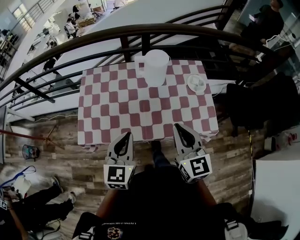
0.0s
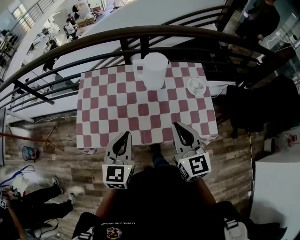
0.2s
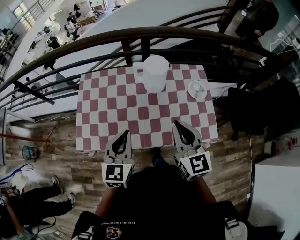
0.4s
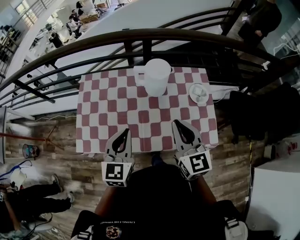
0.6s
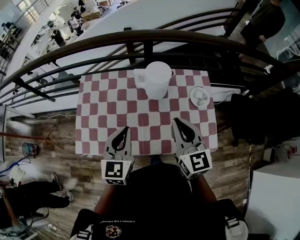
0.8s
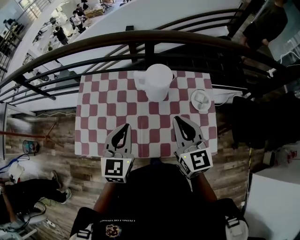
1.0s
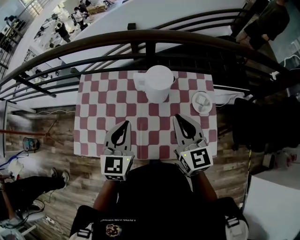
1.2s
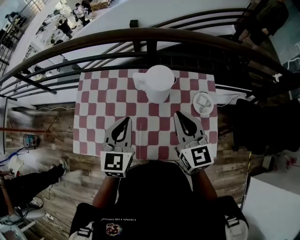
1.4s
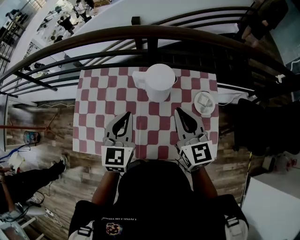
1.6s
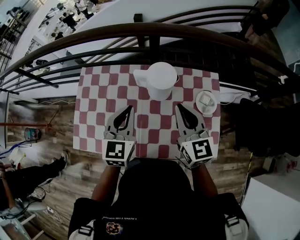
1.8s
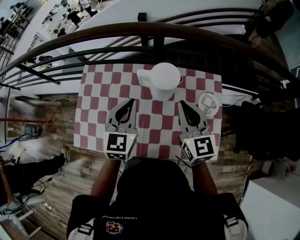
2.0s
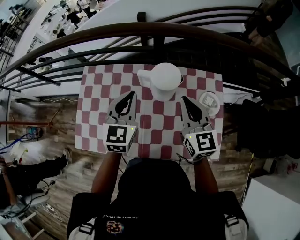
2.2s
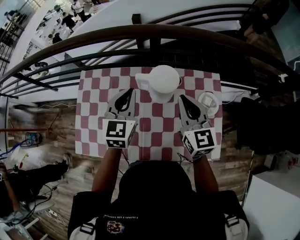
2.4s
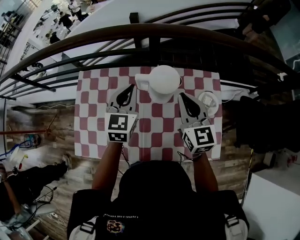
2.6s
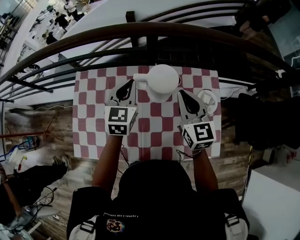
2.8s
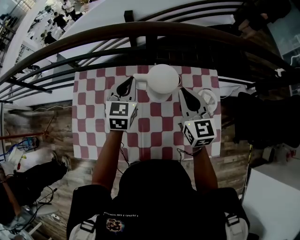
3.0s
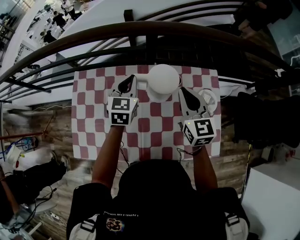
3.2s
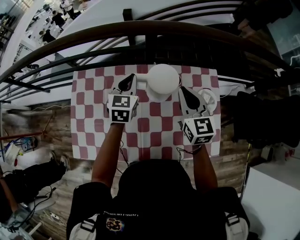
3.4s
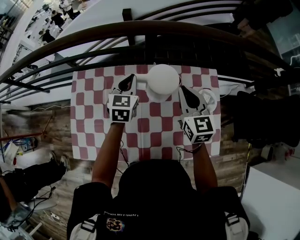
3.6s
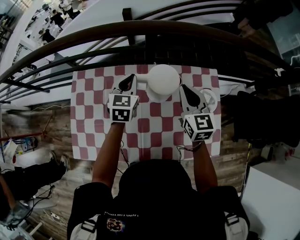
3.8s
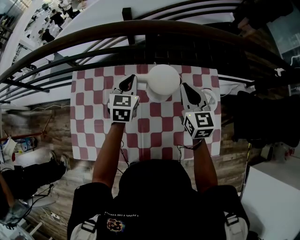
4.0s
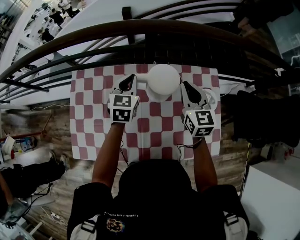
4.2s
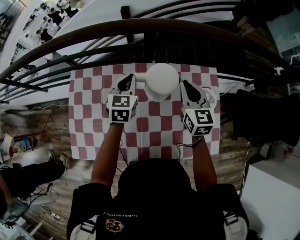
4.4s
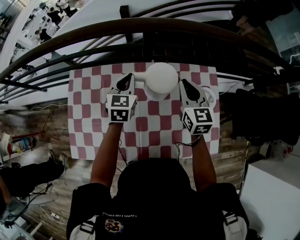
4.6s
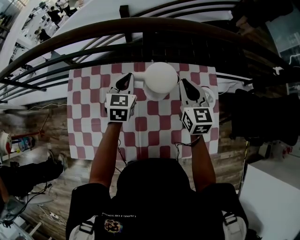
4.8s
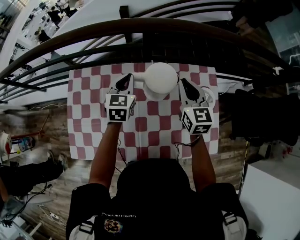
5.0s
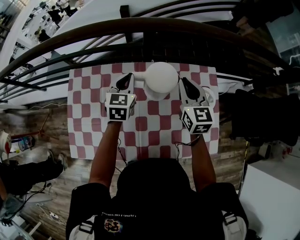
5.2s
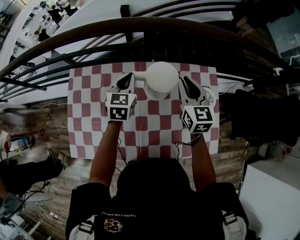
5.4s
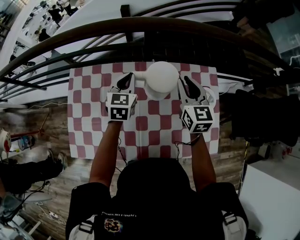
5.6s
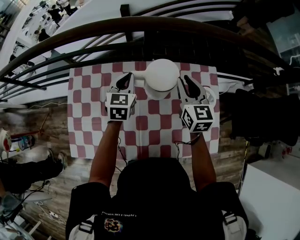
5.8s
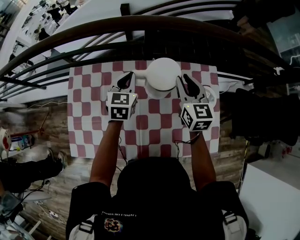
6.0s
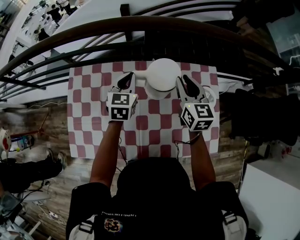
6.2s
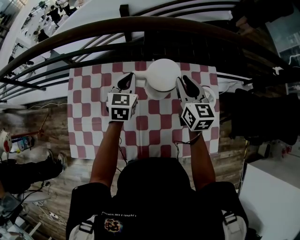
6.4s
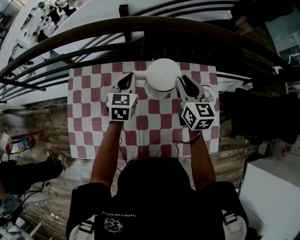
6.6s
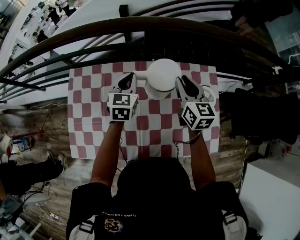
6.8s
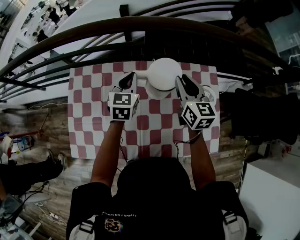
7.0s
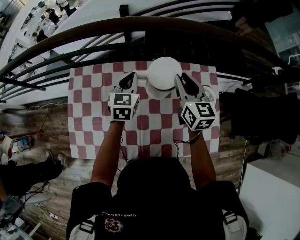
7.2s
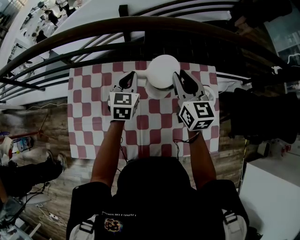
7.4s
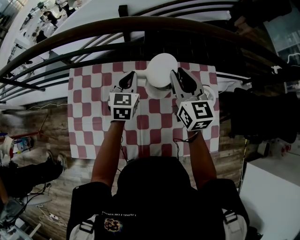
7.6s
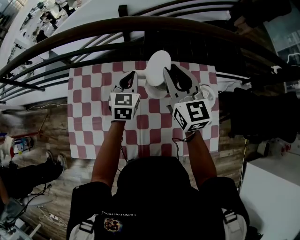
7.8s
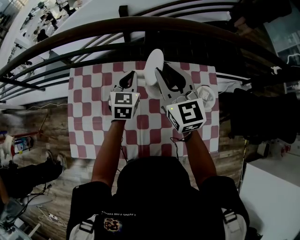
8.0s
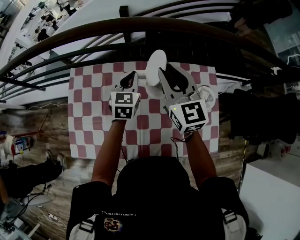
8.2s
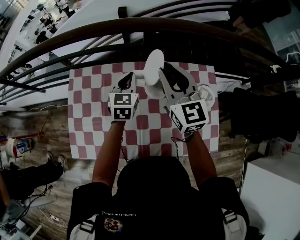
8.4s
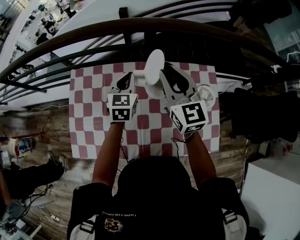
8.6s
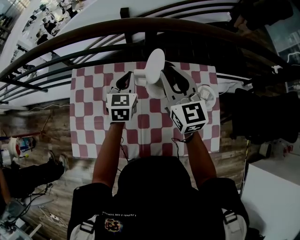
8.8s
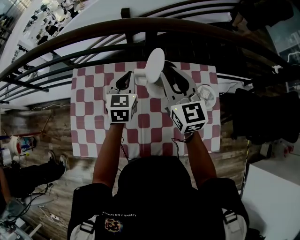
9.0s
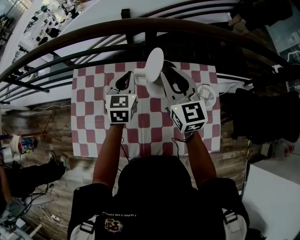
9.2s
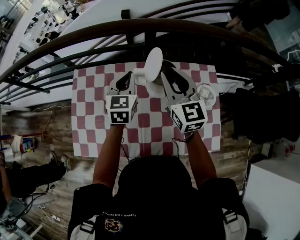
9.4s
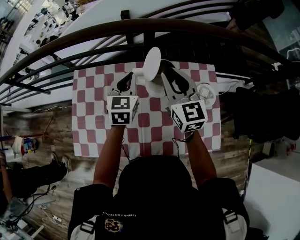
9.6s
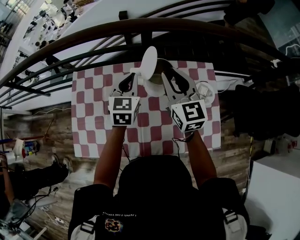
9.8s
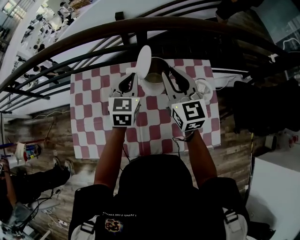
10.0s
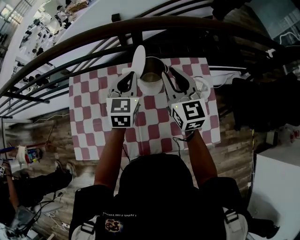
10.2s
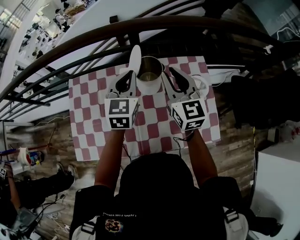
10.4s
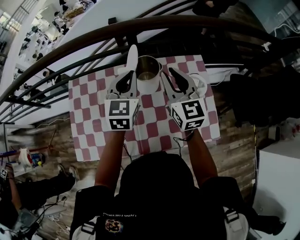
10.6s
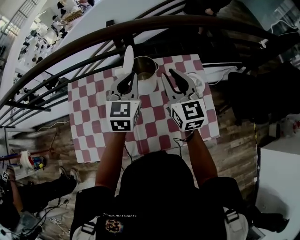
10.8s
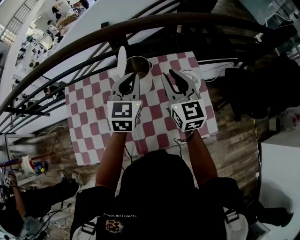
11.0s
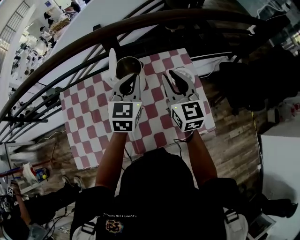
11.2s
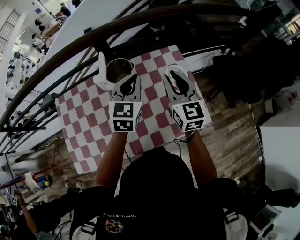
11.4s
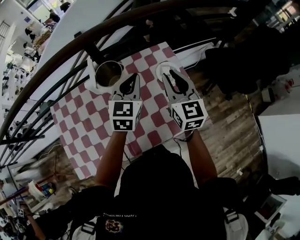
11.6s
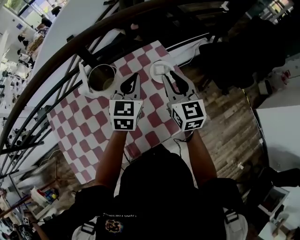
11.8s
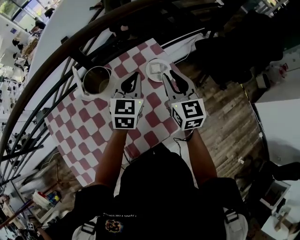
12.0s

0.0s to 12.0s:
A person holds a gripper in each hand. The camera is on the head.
0.0s to 1.6s: Both grippers move forward, roughly 25 cm.
1.6s to 3.0s: The right gripper travels forward by some 10 cm; the left gripper moves forward, roughly 15 cm.
3.0s to 4.4s: The right gripper moves some 5 cm.
4.4s to 6.0s: The grippers move only a little.
6.0s to 7.6s: The right gripper is displaced upward by roughly 5 cm.
9.0s to 10.4s: The right gripper moves to the right, some 5 cm; the left gripper travels to the right and upward by some 10 cm.
10.4s to 12.0s: The right gripper ends up roughly 20 cm from where it was, and rotates approximately 30 degrees. Meanwhile the left gripper moves approximately 25 cm, and swivels some 30 degrees.

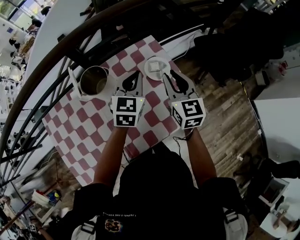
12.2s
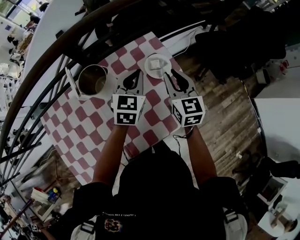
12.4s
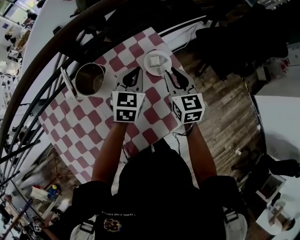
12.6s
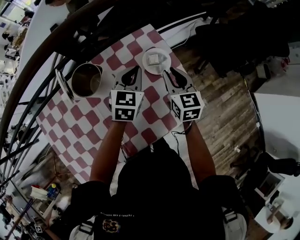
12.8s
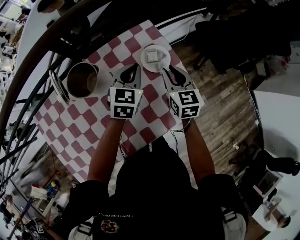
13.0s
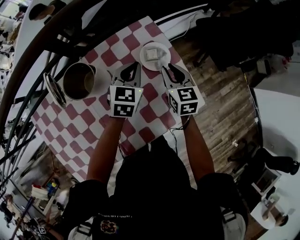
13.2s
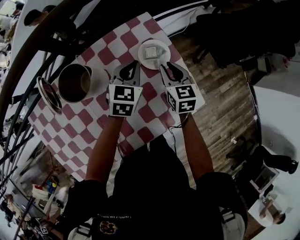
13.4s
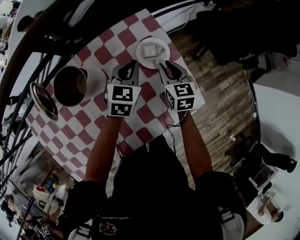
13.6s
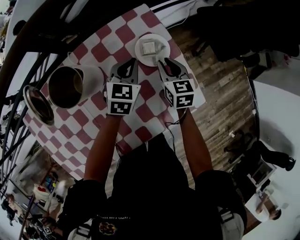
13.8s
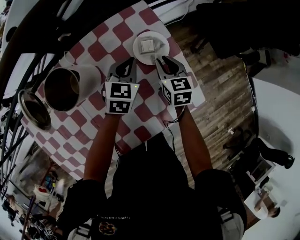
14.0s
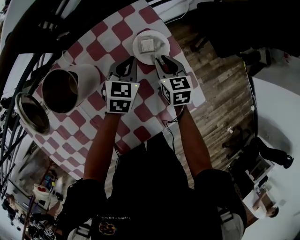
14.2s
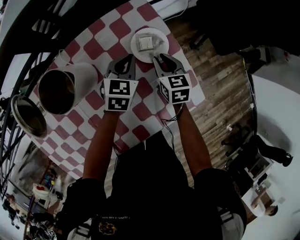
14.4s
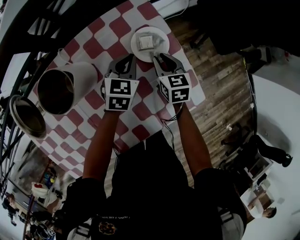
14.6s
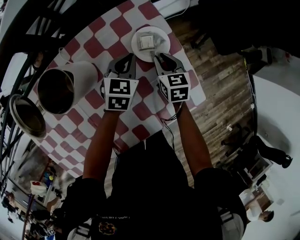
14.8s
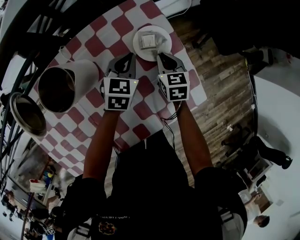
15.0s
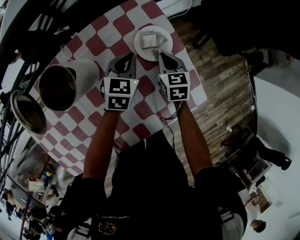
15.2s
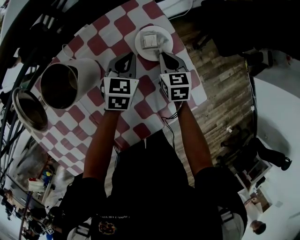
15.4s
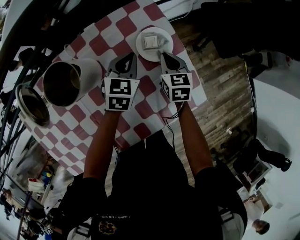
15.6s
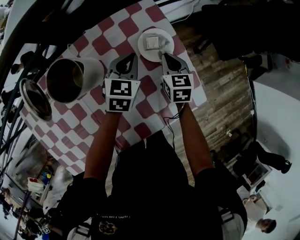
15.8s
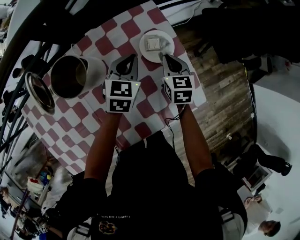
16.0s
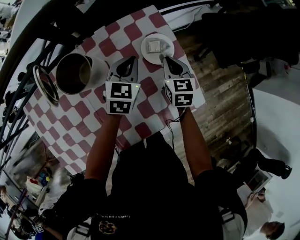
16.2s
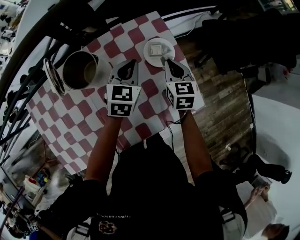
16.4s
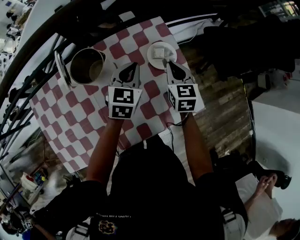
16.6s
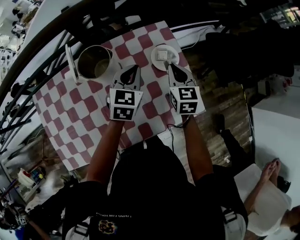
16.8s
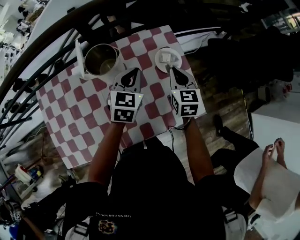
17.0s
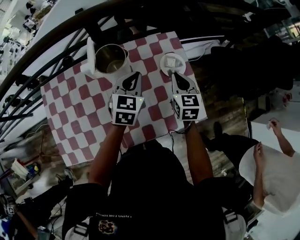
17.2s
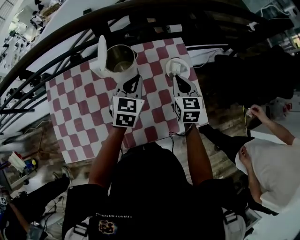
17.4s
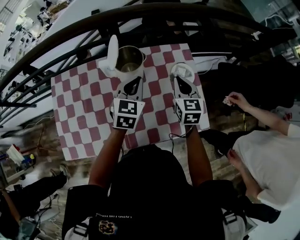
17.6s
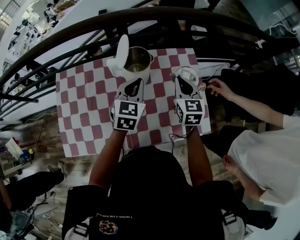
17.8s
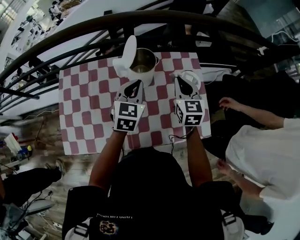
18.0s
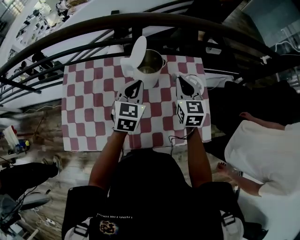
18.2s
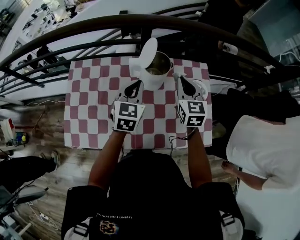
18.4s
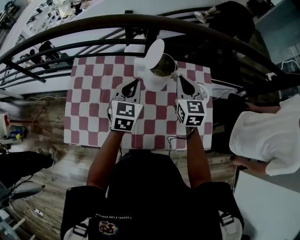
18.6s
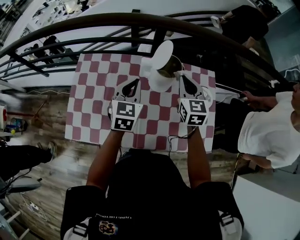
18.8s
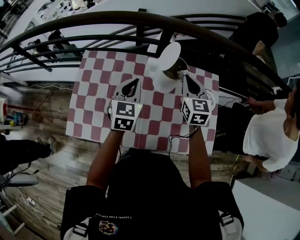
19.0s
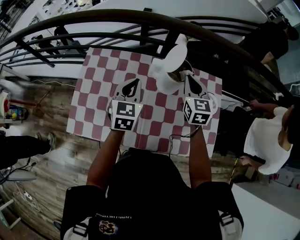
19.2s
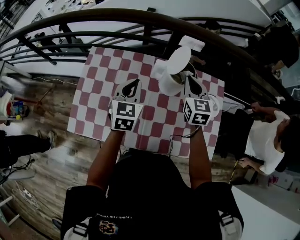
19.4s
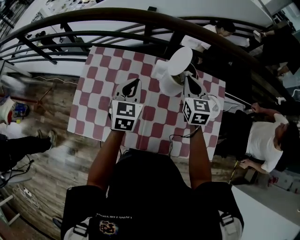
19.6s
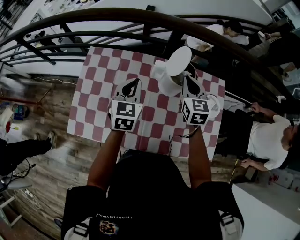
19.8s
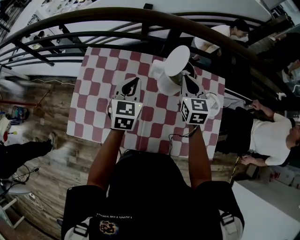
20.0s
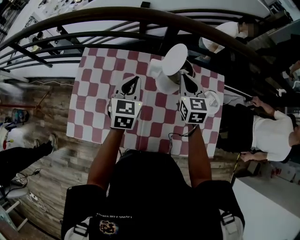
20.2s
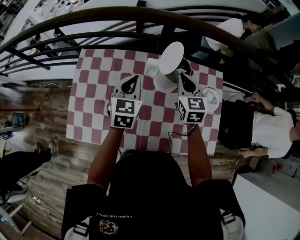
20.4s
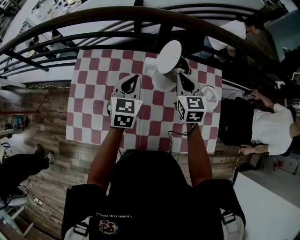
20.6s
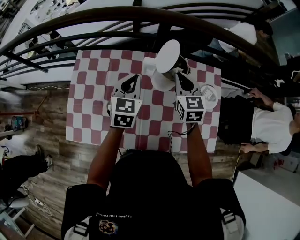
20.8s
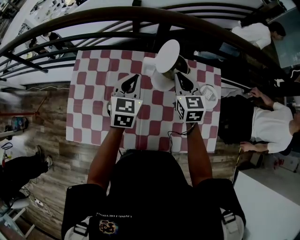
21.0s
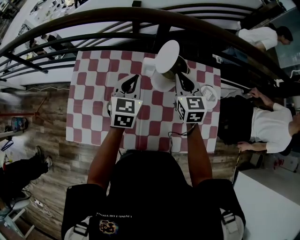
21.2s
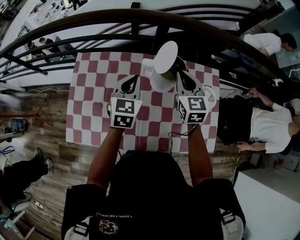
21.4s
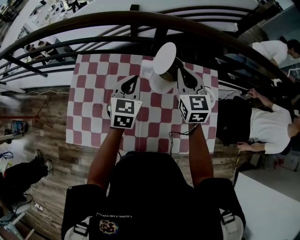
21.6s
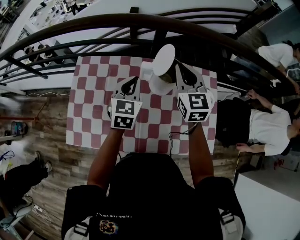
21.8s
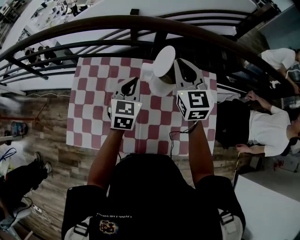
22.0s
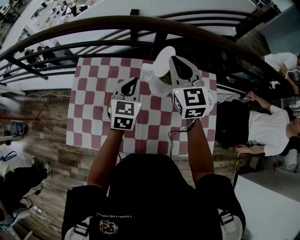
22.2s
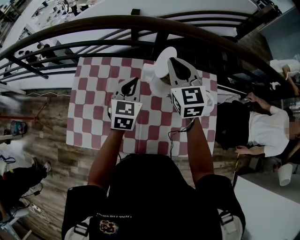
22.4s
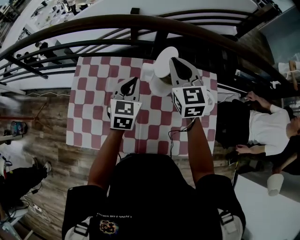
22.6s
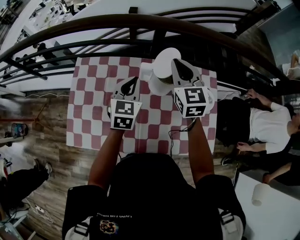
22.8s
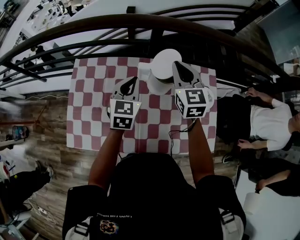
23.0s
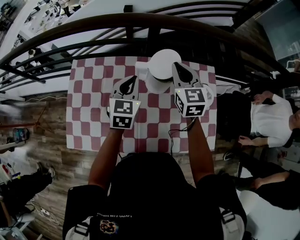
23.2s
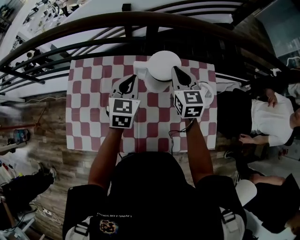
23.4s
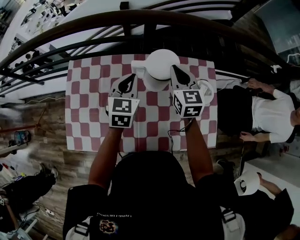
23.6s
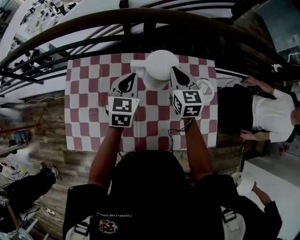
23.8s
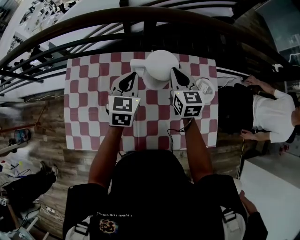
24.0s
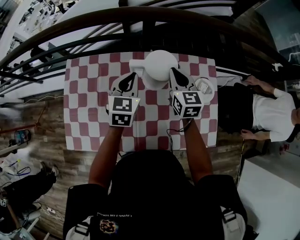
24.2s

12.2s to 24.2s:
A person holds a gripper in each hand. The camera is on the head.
12.2s to 13.8s: Both grippers move downward, some 20 cm. The right gripper swivels some 20 degrees.
13.8s to 15.2s: The right gripper is displaced downward by roughly 5 cm.
15.2s to 16.6s: The left gripper goes about 15 cm upward and backward, while the right gripper heads upward, covering about 15 cm.
16.6s to 18.2s: The left gripper is displaced to the left, backward and upward by about 20 cm, and rotates about 20 degrees. The right gripper travels to the left and upward by approximately 20 cm, and changes its angle by about 20 degrees.
18.2s to 19.8s: The right gripper is displaced to the left and forward by roughly 10 cm, while the left gripper shifts about 15 cm to the left.
19.8s to 21.2s: The grippers move only a little.
21.2s to 22.6s: The right gripper goes some 10 cm upward.
22.6s to 24.2s: The left gripper moves some 5 cm. Meanwhile the right gripper heads downward and to the right, covering approximately 15 cm.
